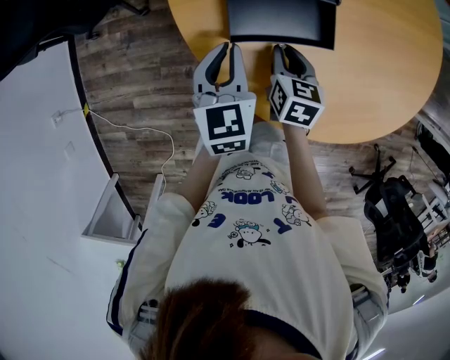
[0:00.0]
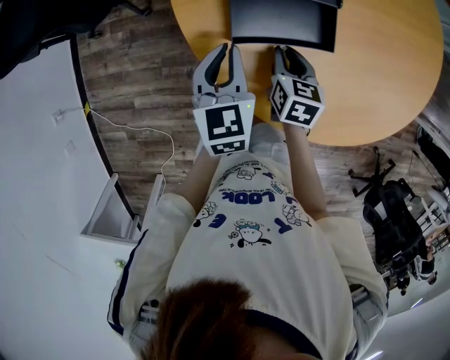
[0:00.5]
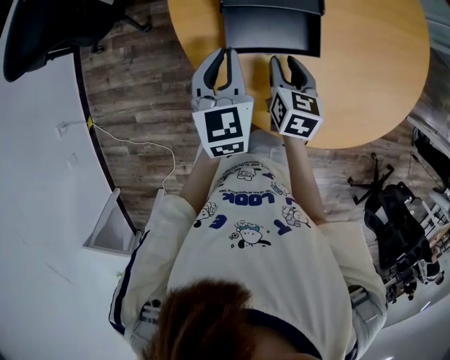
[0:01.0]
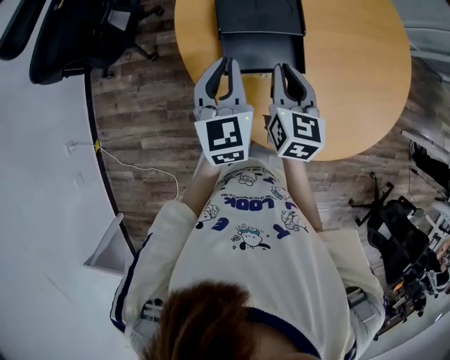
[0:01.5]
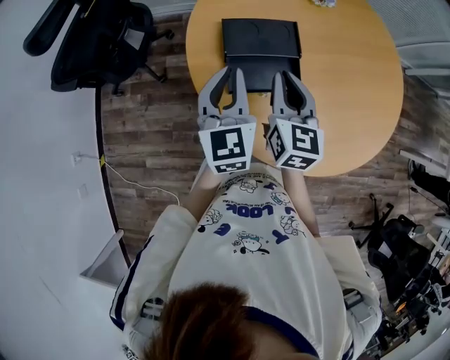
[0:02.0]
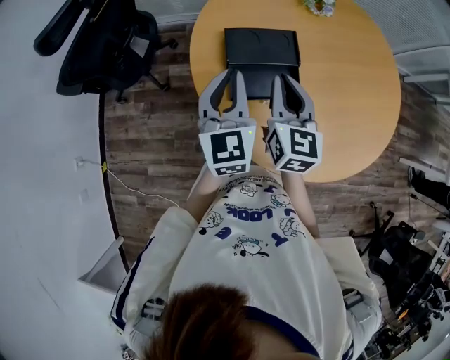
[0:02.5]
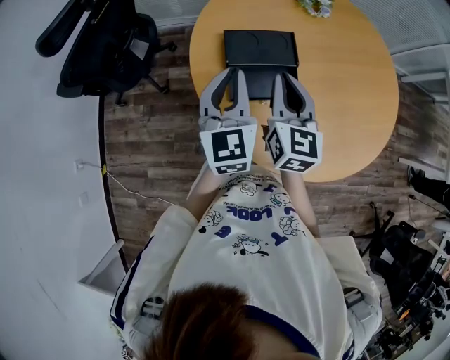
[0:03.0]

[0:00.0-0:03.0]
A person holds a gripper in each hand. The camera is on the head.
0:00.0 to 0:01.5: The right gripper travels upward by roughly 15 cm, and rotates roughly 20 degrees, while the left gripper moves upward, about 10 cm.
0:01.5 to 0:03.0: The grippers both shift upward by roughly 10 cm.

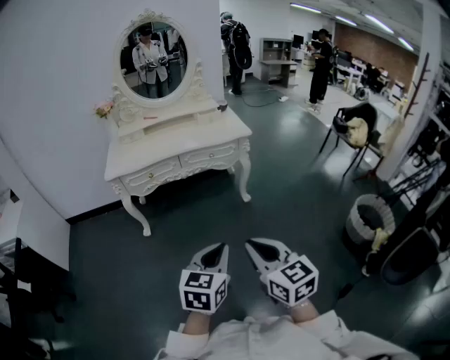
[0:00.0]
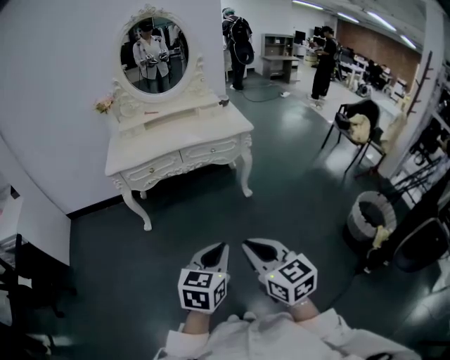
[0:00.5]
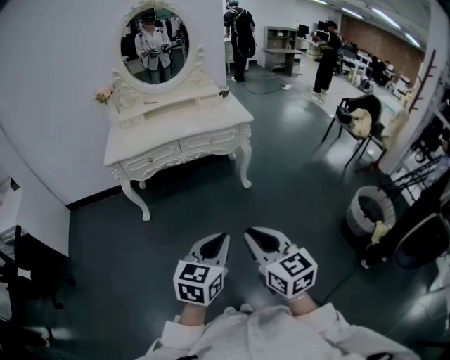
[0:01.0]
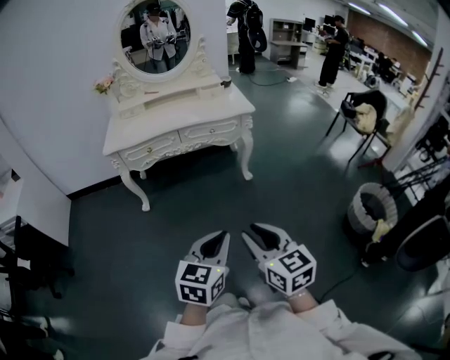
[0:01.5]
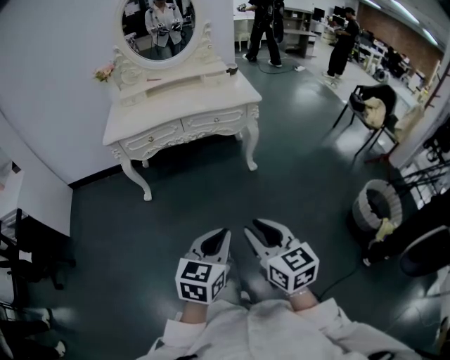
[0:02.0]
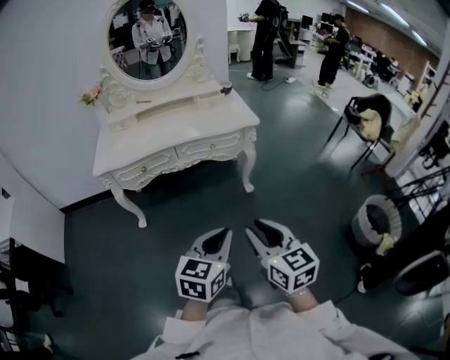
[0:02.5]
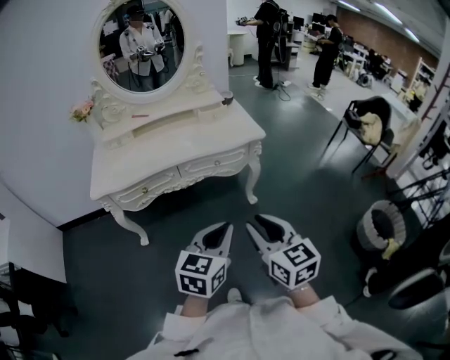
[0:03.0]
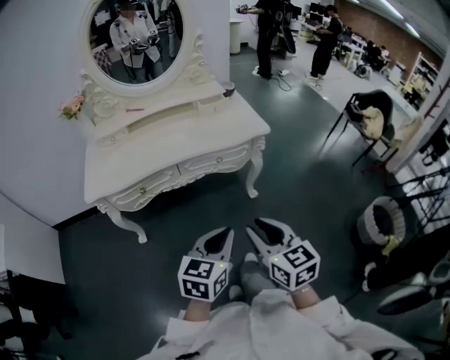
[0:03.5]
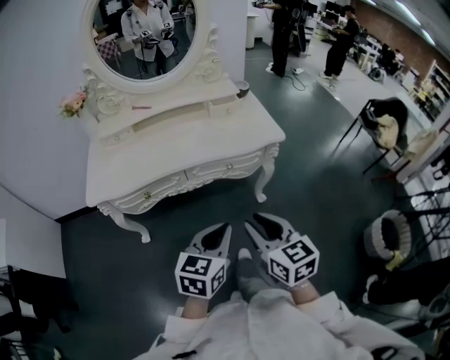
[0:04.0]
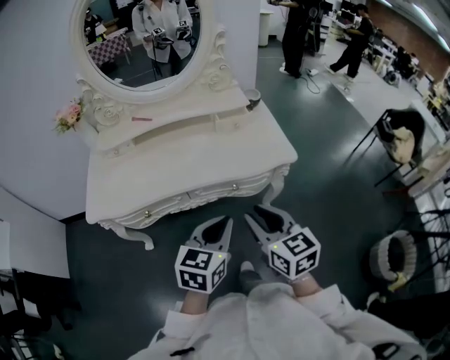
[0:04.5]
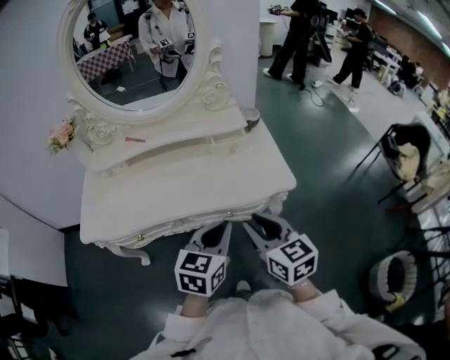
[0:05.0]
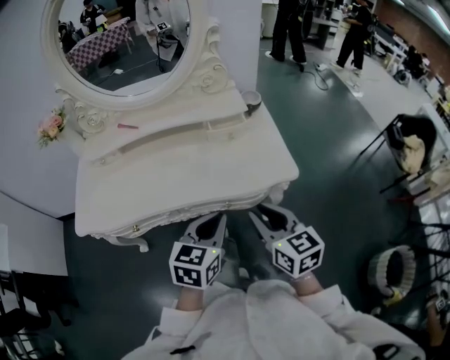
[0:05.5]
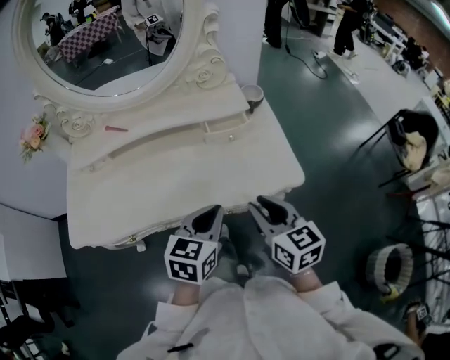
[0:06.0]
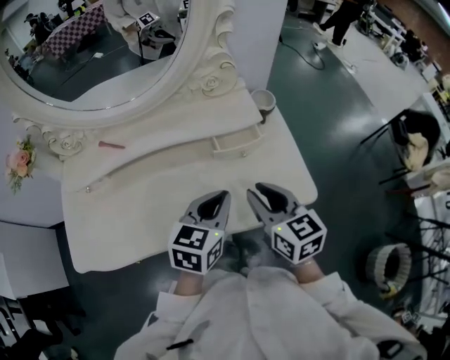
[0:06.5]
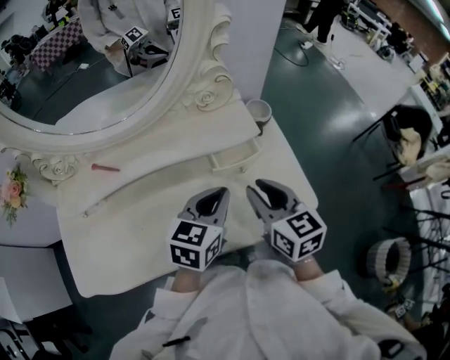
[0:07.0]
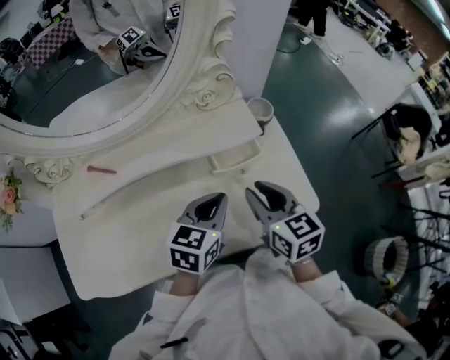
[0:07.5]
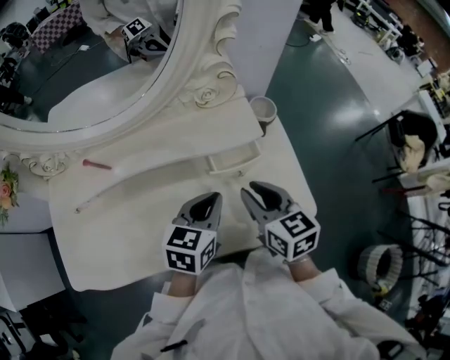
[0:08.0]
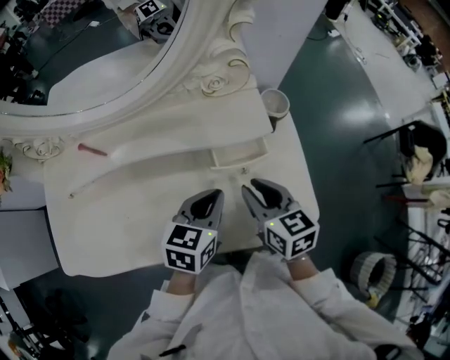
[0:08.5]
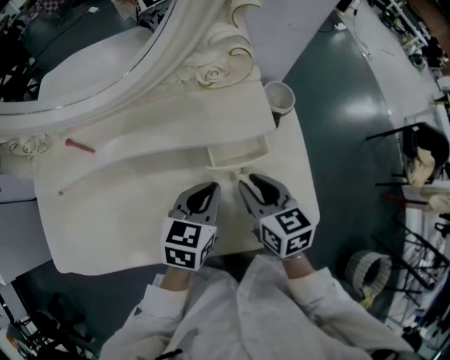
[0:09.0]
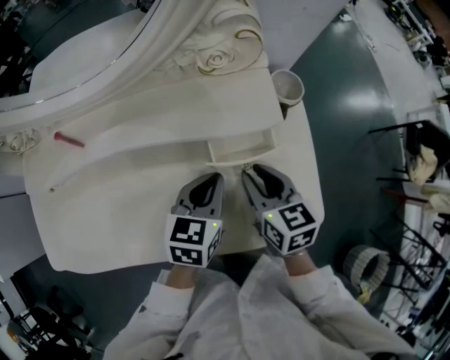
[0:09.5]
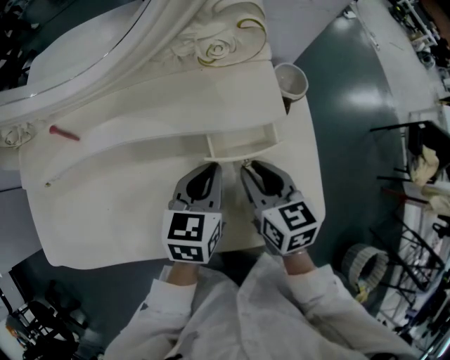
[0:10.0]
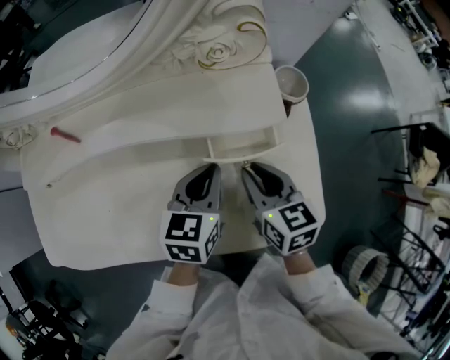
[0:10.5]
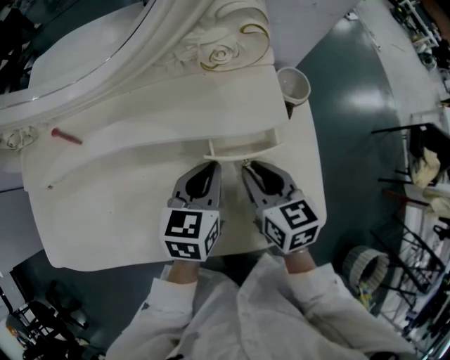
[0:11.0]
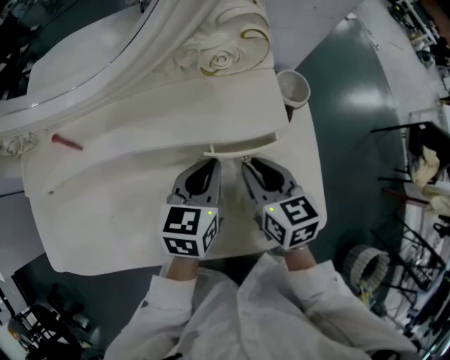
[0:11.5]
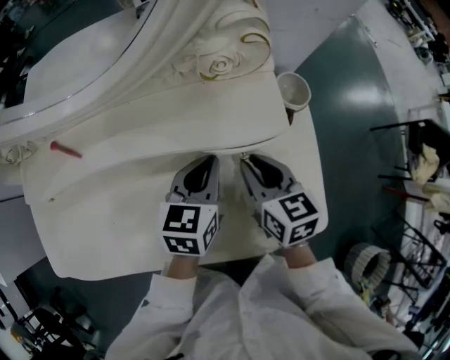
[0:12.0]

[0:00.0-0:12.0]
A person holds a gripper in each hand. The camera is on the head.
0:00.0 to 0:02.0: The right gripper moves downward, roughly 5 cm.
0:02.0 to 0:04.0: Both grippers travel together forward, roughly 35 cm.
0:04.0 to 0:06.0: Both grippers travel together forward, about 30 cm.
0:06.0 to 0:08.0: Both grippers travel together forward, some 20 cm.
0:08.0 to 0:10.0: The right gripper travels downward by about 10 cm. Meanwhile the left gripper is displaced downward and forward by about 10 cm.
0:10.0 to 0:12.0: There are only small adjustments of the grippers.

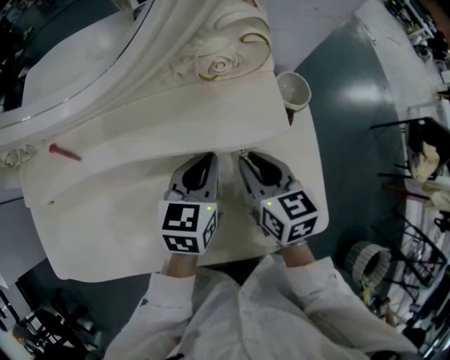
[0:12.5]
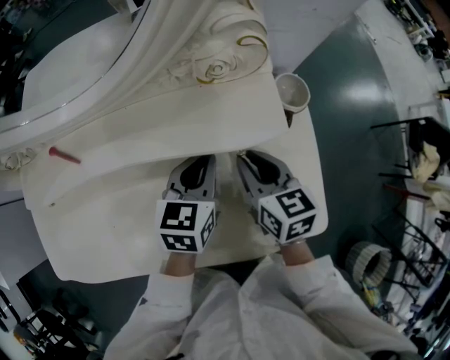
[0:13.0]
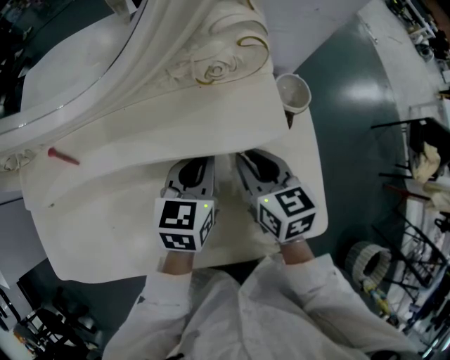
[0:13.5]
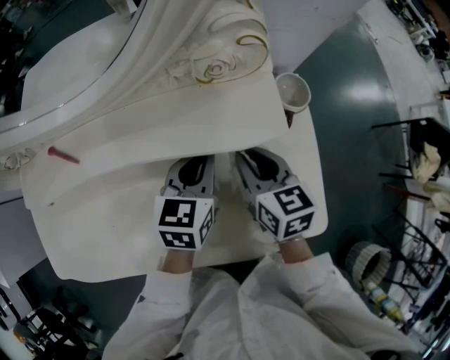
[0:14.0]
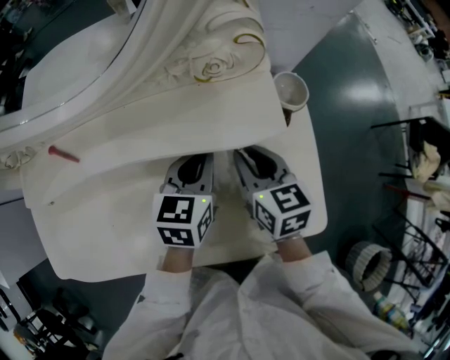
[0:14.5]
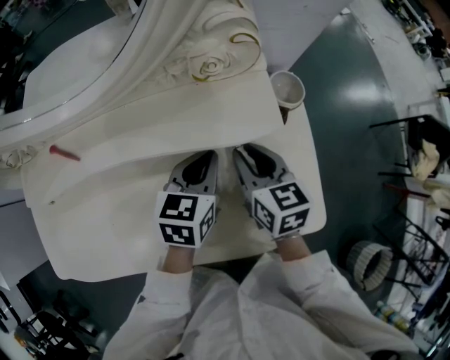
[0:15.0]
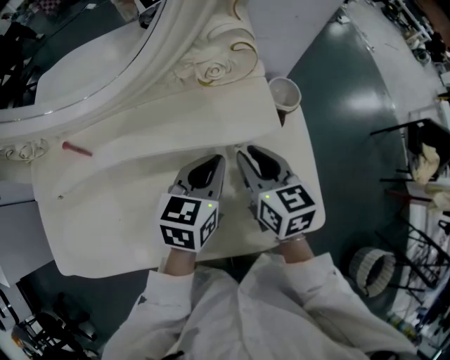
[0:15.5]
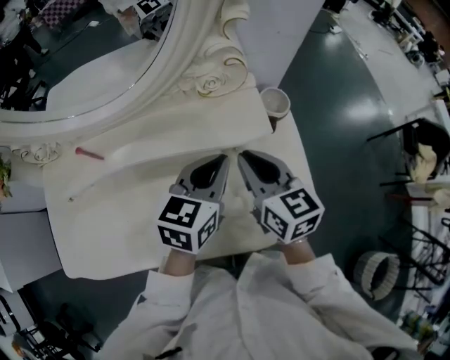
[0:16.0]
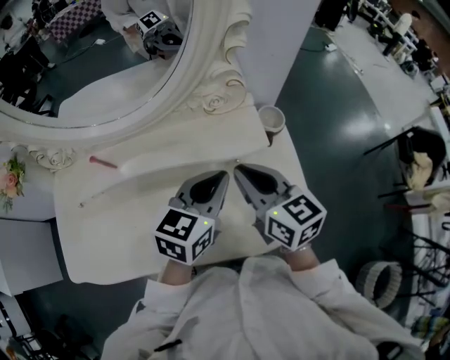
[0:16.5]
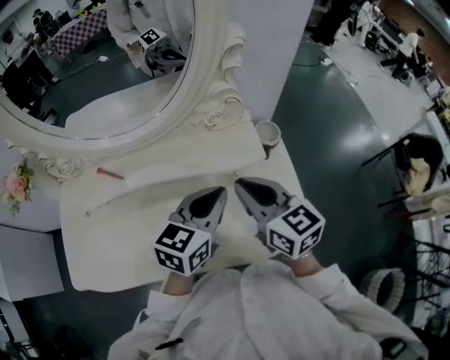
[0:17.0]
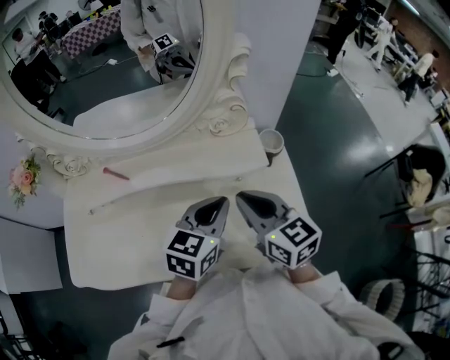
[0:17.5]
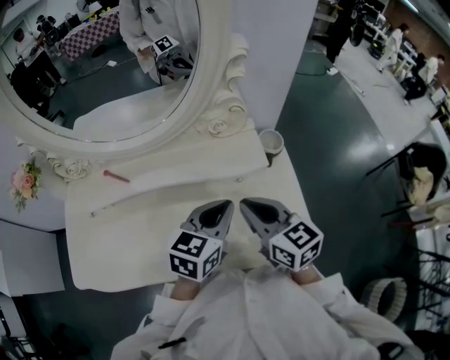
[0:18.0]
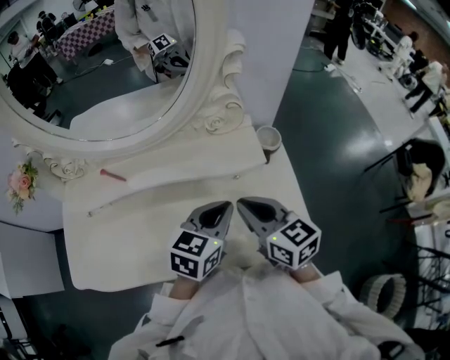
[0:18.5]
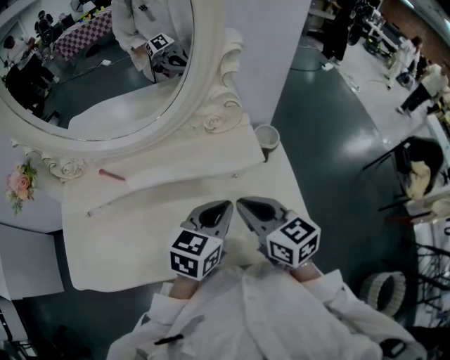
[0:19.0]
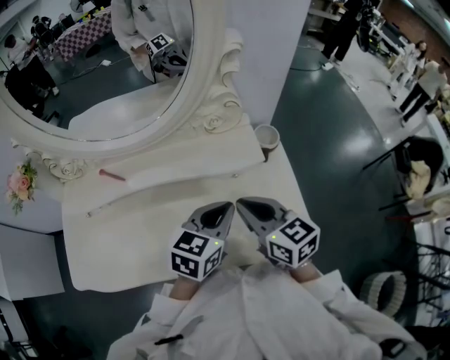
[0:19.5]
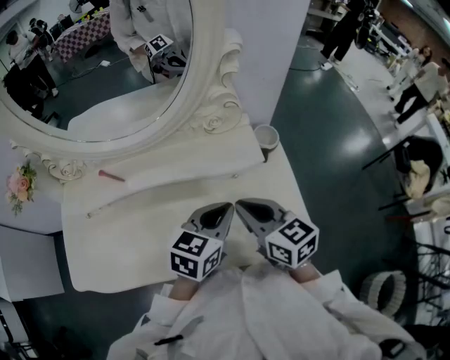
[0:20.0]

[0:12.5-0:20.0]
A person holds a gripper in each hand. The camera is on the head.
0:12.5 to 0:14.5: The grippers make only small movements.
0:14.5 to 0:16.5: The left gripper travels upward and backward by about 15 cm; the right gripper is displaced upward by about 15 cm.
0:16.5 to 0:20.0: The grippers stay close to where they were, moving slightly.

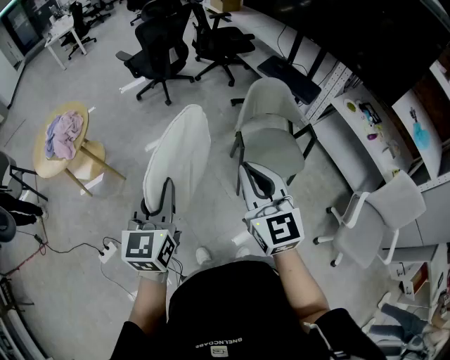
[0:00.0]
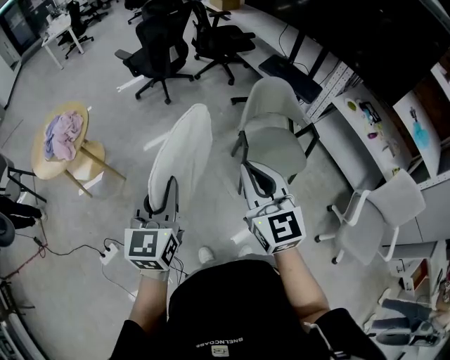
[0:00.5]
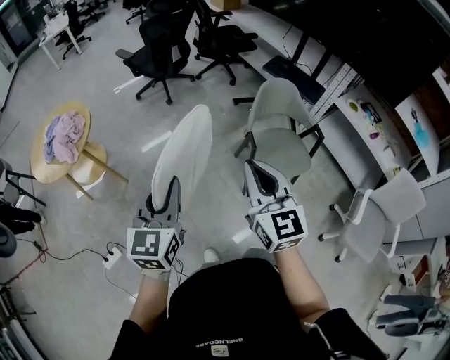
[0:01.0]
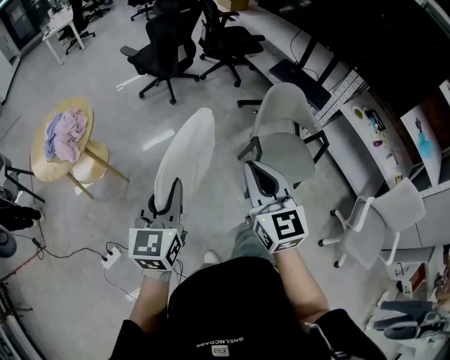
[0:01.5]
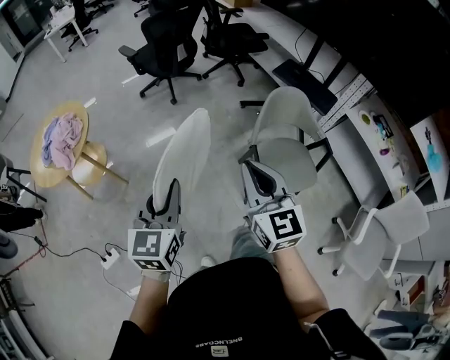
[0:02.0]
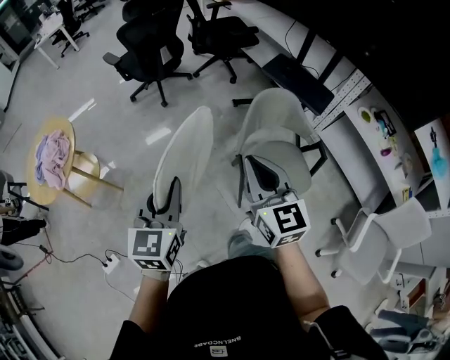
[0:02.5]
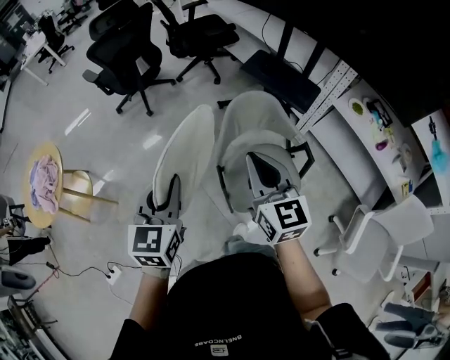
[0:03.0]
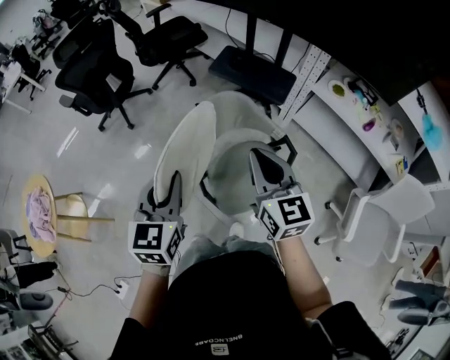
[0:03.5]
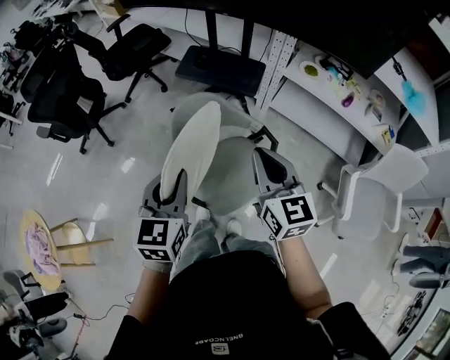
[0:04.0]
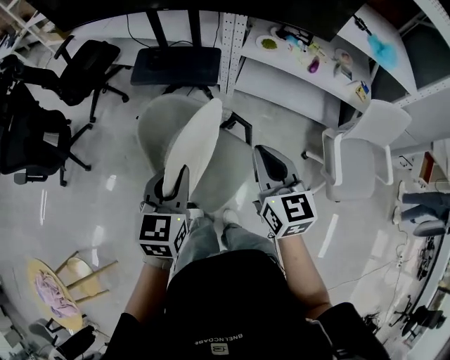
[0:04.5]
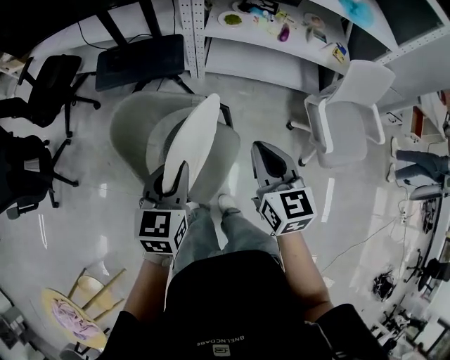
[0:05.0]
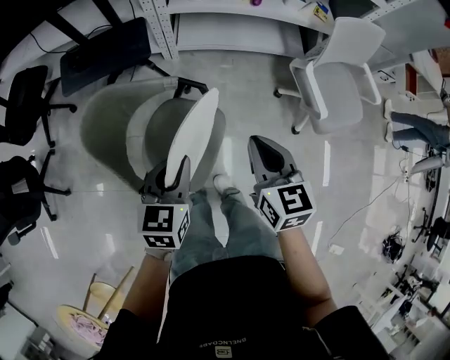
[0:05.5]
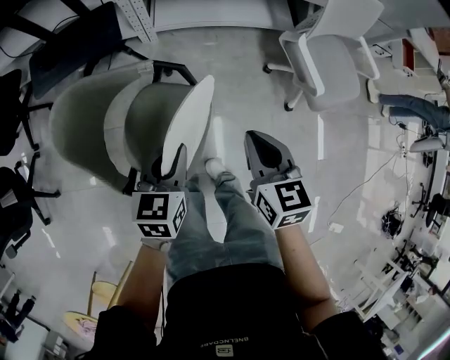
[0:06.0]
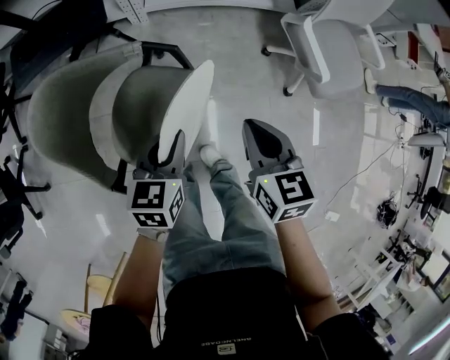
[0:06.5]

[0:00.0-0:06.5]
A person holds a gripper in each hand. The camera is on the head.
0:00.0 to 0:02.0: Both grippers travel together forward, roughly 15 cm.
0:02.0 to 0:04.5: The two grippers travel together, roughly 50 cm. The right gripper turns by roughly 50 degrees; the left gripper rotates roughly 50 degrees.
0:04.5 to 0:06.5: Both grippers travel together downward, some 25 cm. The left gripper rotates approximately 30 degrees. Meanwhile the right gripper rotates some 30 degrees.
